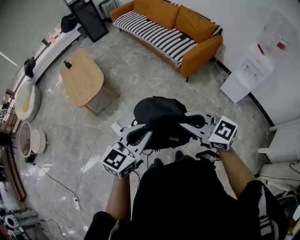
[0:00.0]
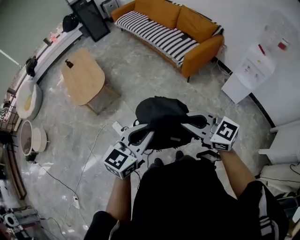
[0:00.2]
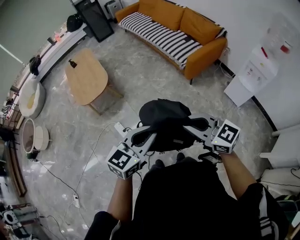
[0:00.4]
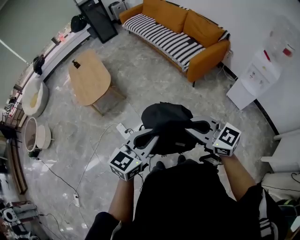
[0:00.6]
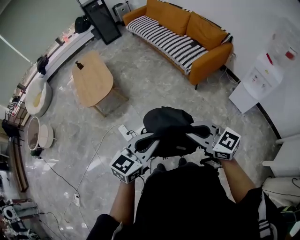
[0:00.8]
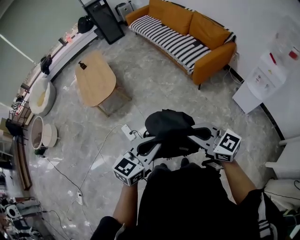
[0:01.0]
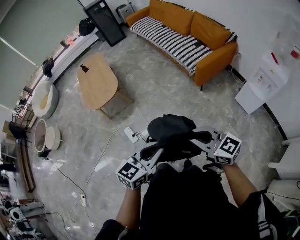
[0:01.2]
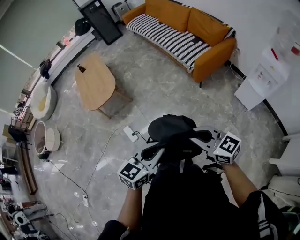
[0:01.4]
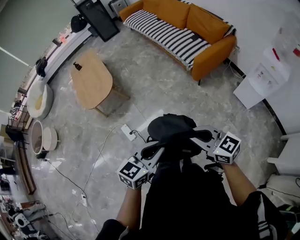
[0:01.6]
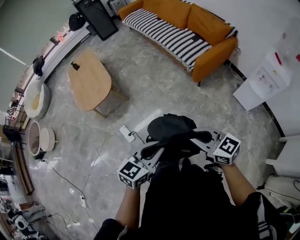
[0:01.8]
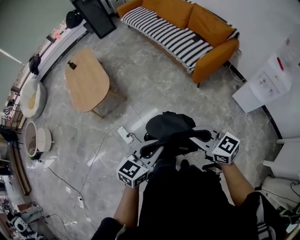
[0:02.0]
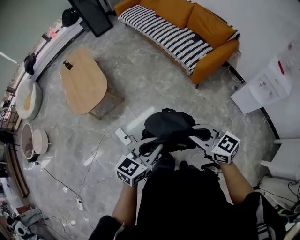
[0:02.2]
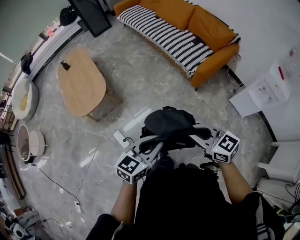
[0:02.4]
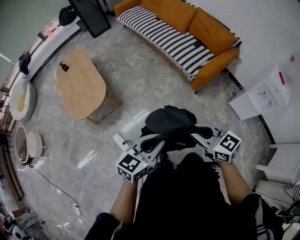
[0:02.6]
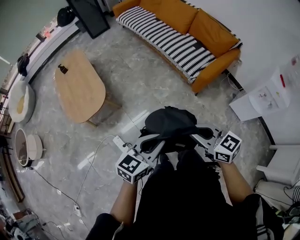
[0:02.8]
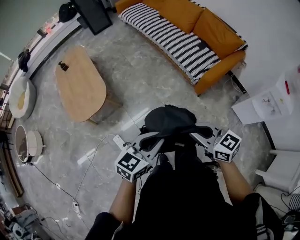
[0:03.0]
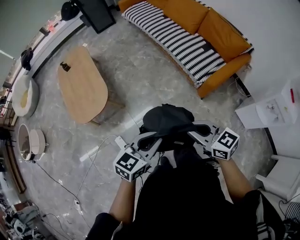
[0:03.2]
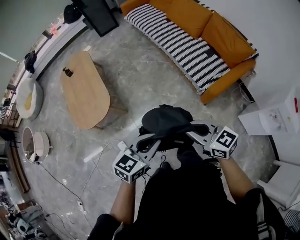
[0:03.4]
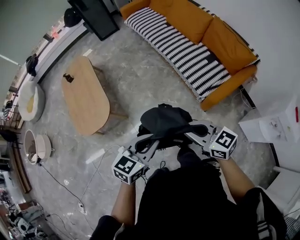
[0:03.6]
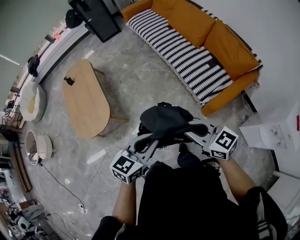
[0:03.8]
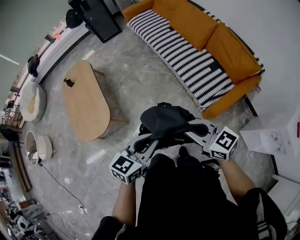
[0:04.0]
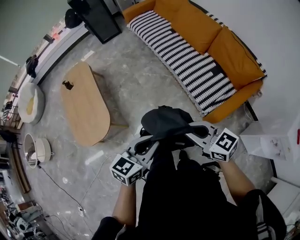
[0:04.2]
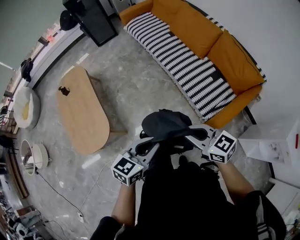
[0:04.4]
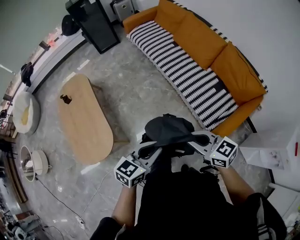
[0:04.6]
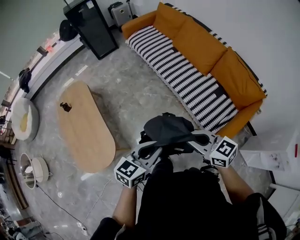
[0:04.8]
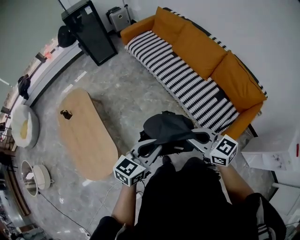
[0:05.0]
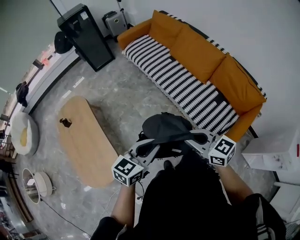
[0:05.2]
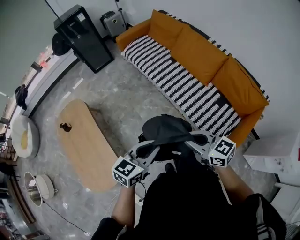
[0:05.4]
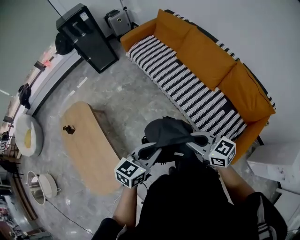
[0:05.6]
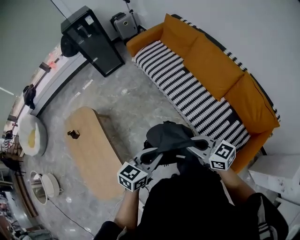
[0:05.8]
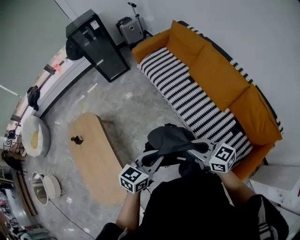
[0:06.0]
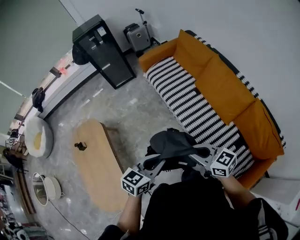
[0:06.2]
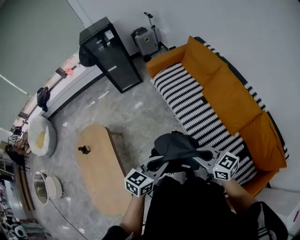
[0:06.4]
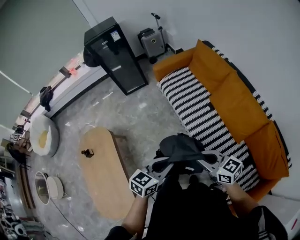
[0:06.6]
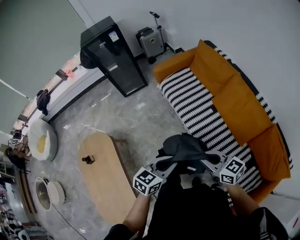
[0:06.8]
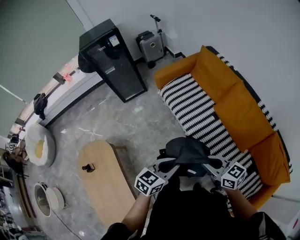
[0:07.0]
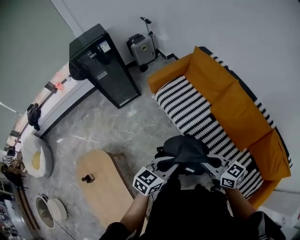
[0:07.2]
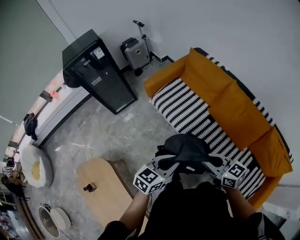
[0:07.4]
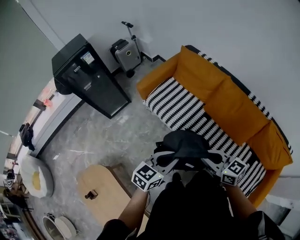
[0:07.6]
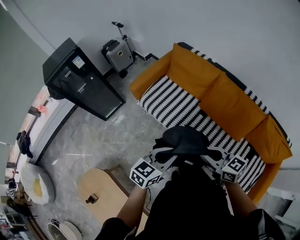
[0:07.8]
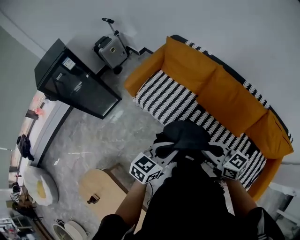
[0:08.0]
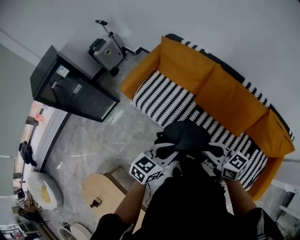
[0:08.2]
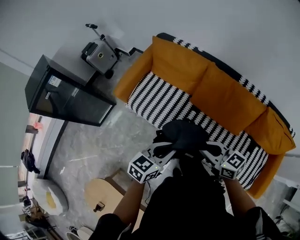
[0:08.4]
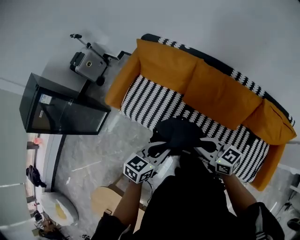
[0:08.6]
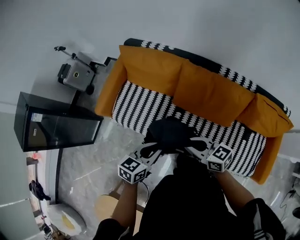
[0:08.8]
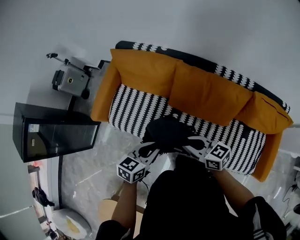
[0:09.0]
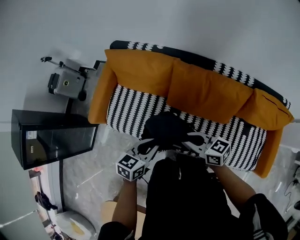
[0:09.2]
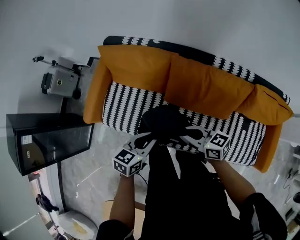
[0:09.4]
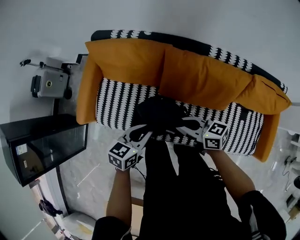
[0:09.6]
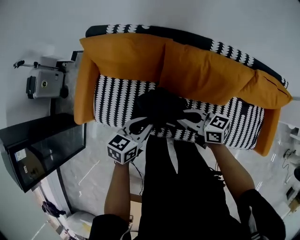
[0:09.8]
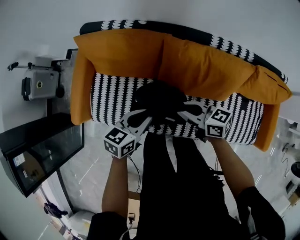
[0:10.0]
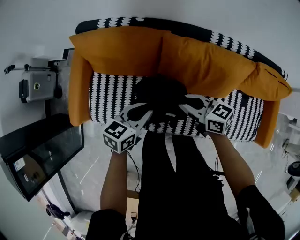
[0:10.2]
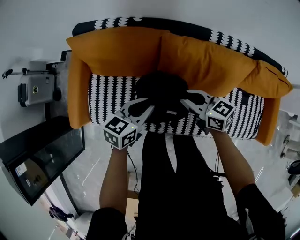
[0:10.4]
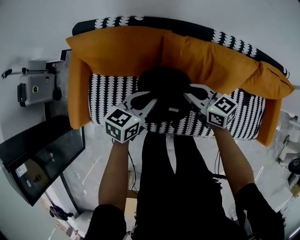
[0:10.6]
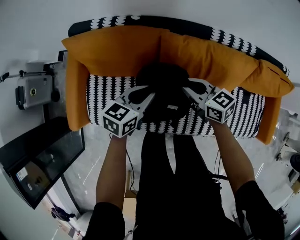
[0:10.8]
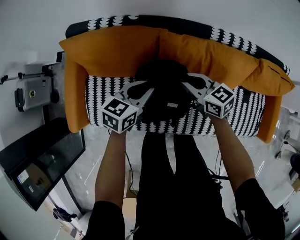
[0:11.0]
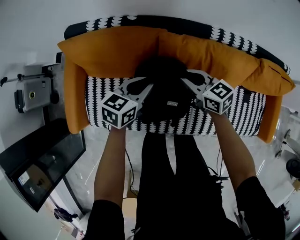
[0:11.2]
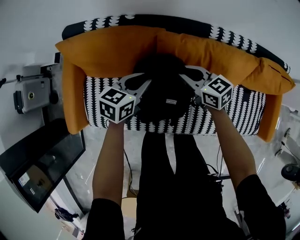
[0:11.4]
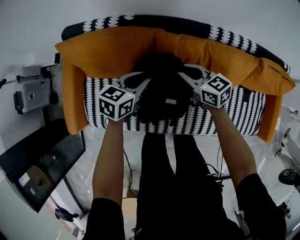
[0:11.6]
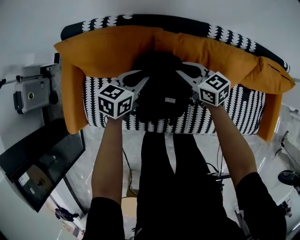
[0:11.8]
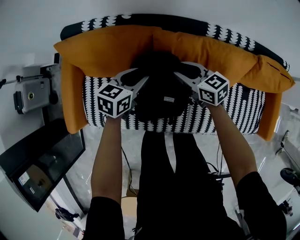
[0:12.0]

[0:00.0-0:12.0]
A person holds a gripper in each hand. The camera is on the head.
0.0 to 1.6 s: The left gripper moves downward, about 5 cm. The right gripper goes roughly 10 cm downward and to the right.
1.6 to 3.0 s: Both grippers travel together forward, roughly 25 cm.
3.0 to 4.4 s: Both grippers travel together forward, some 35 cm.
4.4 to 6.0 s: The grippers both shift forward by about 40 cm.
6.0 to 7.6 s: Both grippers travel together forward, about 35 cm. The right gripper turns by some 20 degrees.
7.6 to 9.0 s: The right gripper travels forward, to the right and downward by roughly 25 cm, and changes its angle by roughly 20 degrees. Meanwhile the left gripper goes approximately 25 cm forward and to the right, and changes its angle by some 20 degrees.
9.0 to 10.4 s: Both grippers travel together forward and downward, about 20 cm.
10.4 to 12.0 s: The grippers both shift forward and downward by approximately 15 cm. The right gripper opens its fingers.

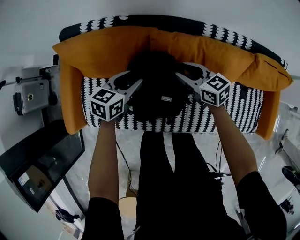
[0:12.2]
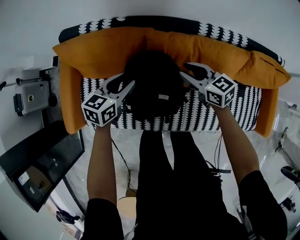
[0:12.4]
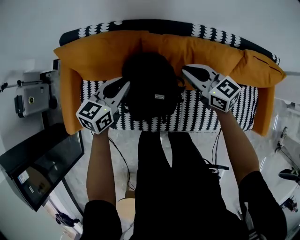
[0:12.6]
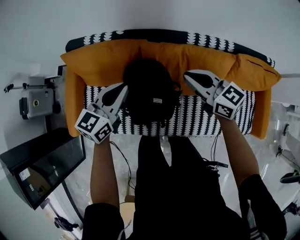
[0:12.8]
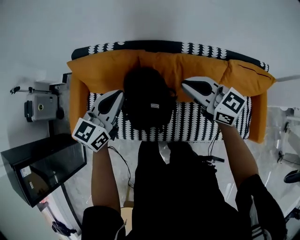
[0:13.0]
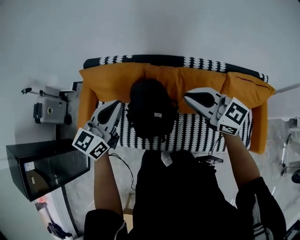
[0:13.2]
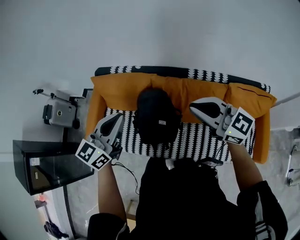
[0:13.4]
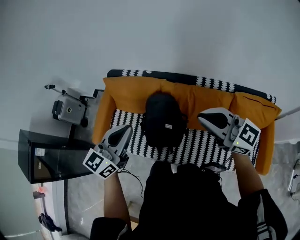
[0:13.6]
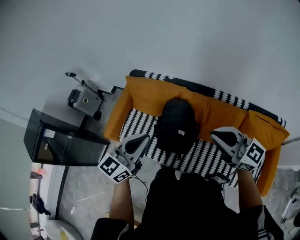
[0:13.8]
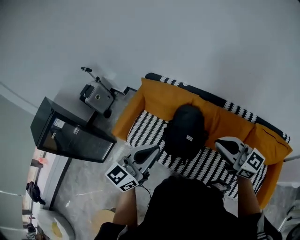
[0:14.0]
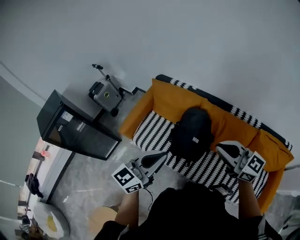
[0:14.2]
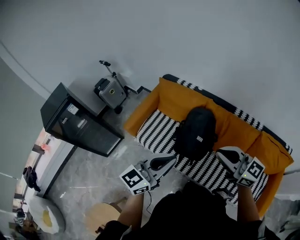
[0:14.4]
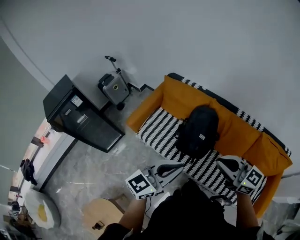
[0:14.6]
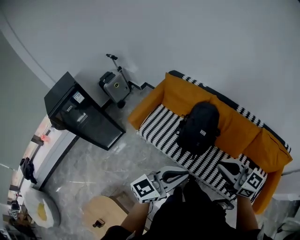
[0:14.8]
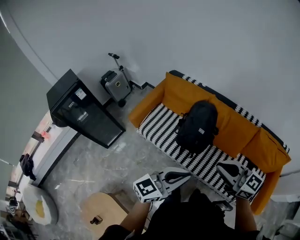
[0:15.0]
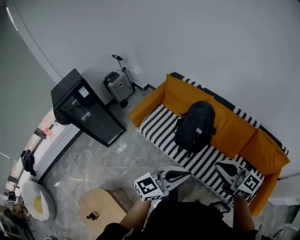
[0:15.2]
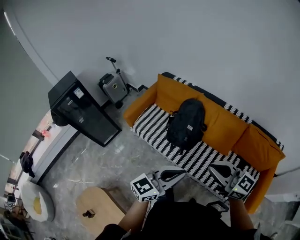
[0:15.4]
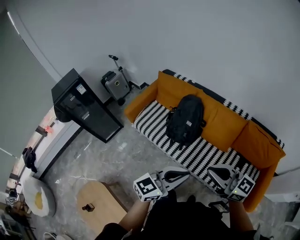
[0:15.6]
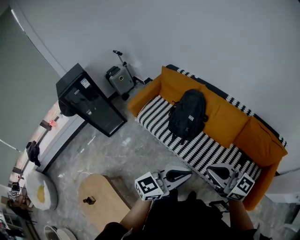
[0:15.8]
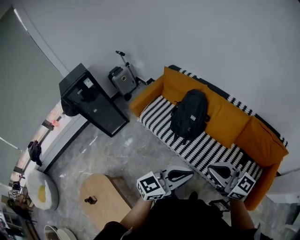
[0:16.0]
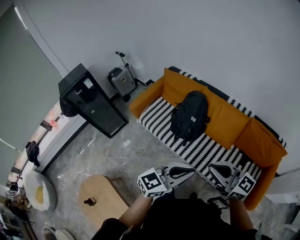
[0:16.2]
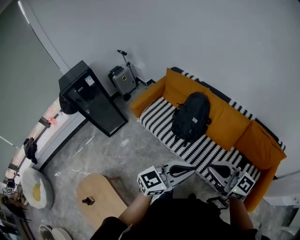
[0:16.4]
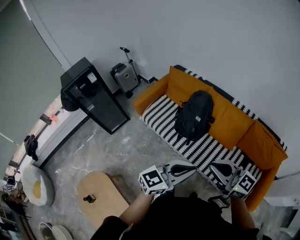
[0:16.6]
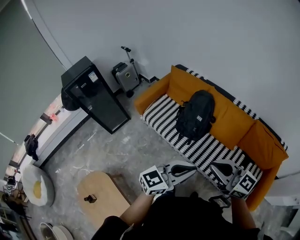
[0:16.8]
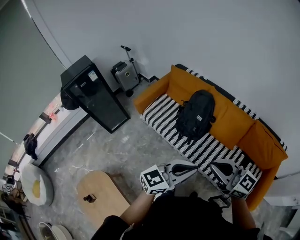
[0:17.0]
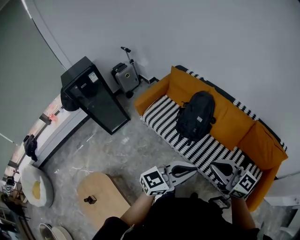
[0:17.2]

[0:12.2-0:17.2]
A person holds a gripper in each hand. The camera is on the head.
12.2 to 13.8 s: The grippers both shift upward and backward by approximately 40 cm. The right gripper angles its fingers upward, by some 30 degrees, and closes up; the left gripper turns by roughly 40 degrees, and closes up.
13.8 to 15.6 s: The right gripper shifts some 30 cm backward; the left gripper travels backward and to the right by approximately 40 cm.
15.6 to 17.2 s: The right gripper travels to the left by approximately 5 cm; the left gripper changes place by approximately 5 cm.

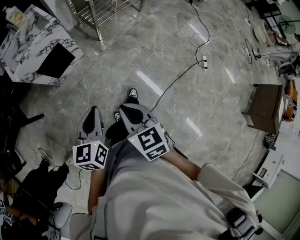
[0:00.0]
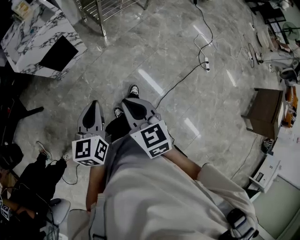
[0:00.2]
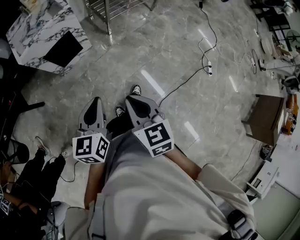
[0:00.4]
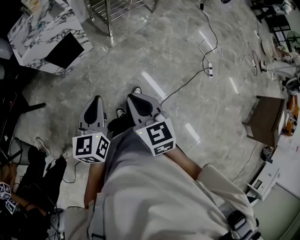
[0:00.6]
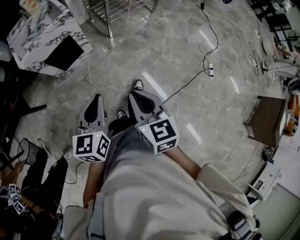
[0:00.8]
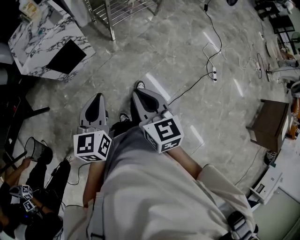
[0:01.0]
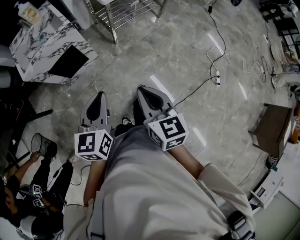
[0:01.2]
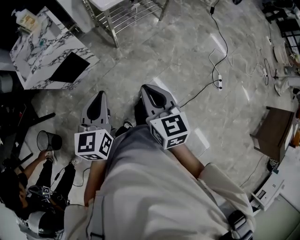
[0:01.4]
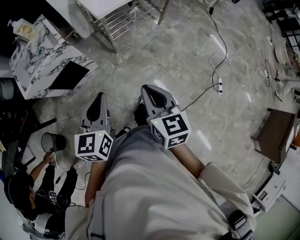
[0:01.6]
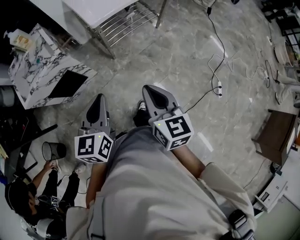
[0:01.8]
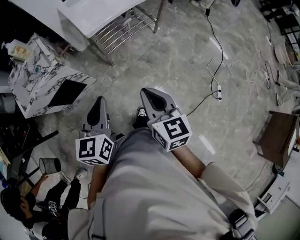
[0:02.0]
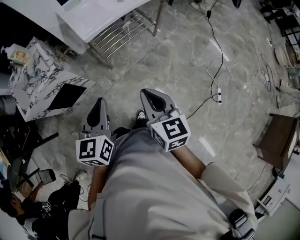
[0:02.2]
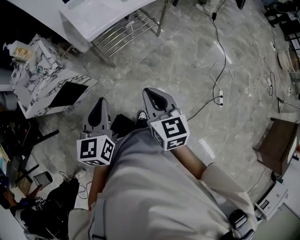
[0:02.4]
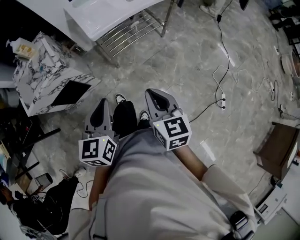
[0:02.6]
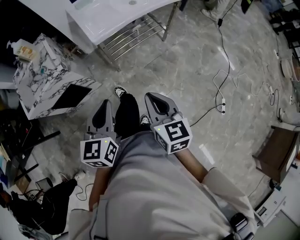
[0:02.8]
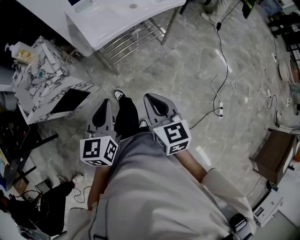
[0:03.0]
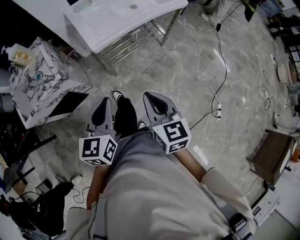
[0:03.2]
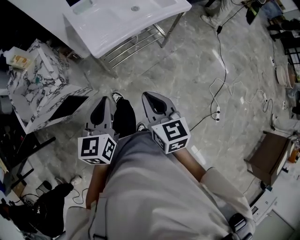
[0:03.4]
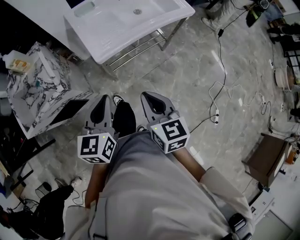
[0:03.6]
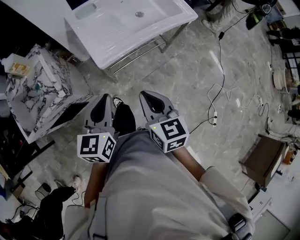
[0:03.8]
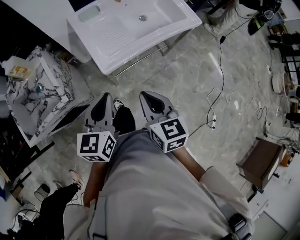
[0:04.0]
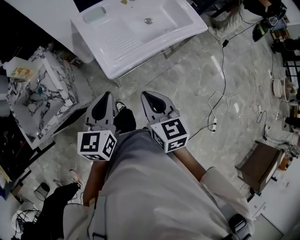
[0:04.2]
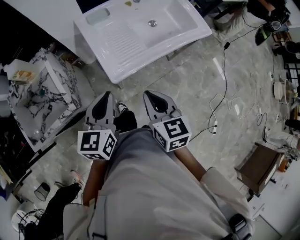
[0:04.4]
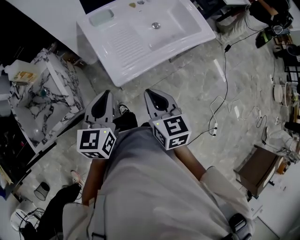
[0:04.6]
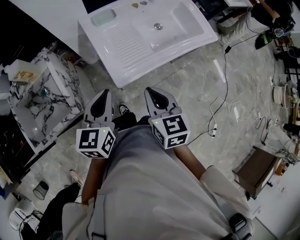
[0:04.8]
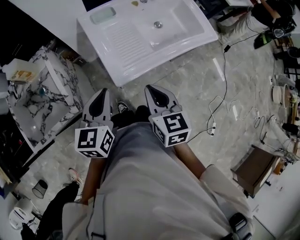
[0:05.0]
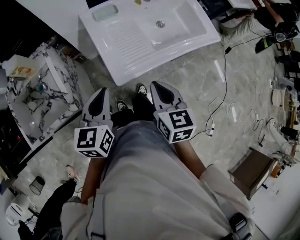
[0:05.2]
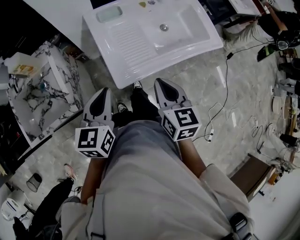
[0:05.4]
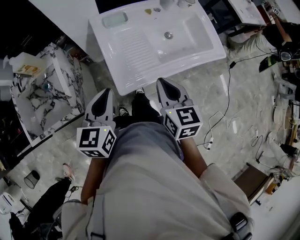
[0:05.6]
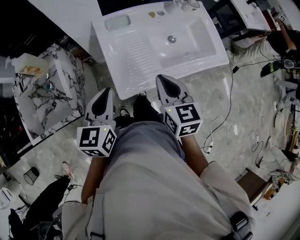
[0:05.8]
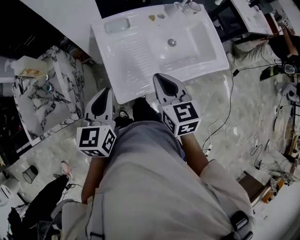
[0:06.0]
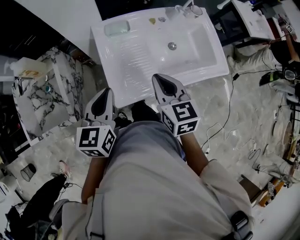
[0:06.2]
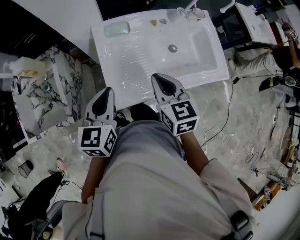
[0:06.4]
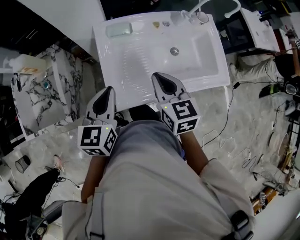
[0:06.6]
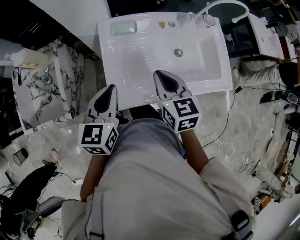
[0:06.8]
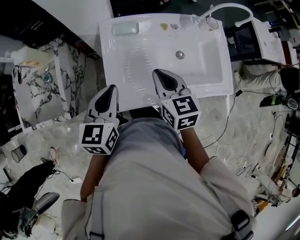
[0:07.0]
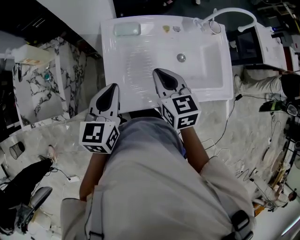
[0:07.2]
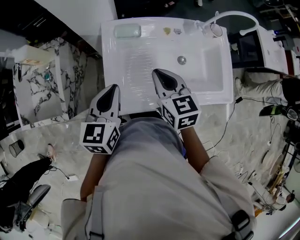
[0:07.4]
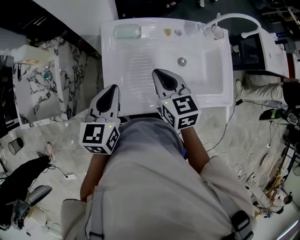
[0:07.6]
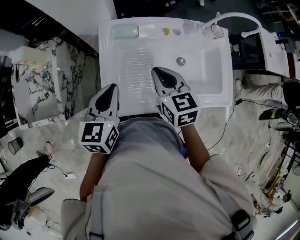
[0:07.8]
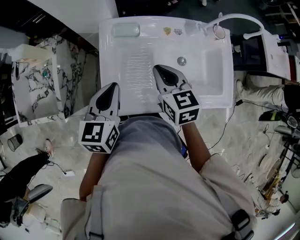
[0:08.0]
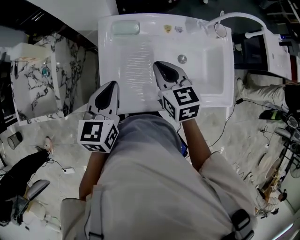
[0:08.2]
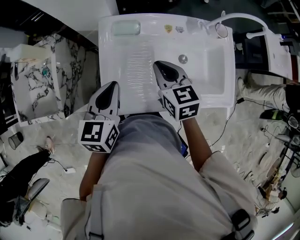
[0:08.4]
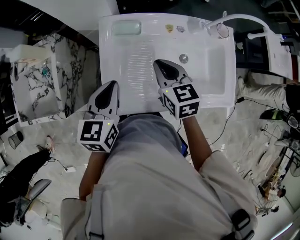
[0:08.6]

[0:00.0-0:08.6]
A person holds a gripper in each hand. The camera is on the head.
0.0 to 1.4 s: The left gripper is displaced forward by approximately 20 cm; the right gripper shifts about 20 cm forward and to the right.
1.4 to 2.8 s: Both grippers move forward and to the right, some 20 cm.
2.8 to 4.4 s: Both grippers move forward, some 30 cm.
4.4 to 5.8 s: The right gripper is displaced forward by some 15 cm, while the left gripper moves forward, roughly 10 cm.
5.8 to 7.2 s: The right gripper heads forward, covering approximately 15 cm; the left gripper shifts some 10 cm forward and to the right.
7.2 to 8.6 s: The right gripper moves forward, roughly 5 cm.
